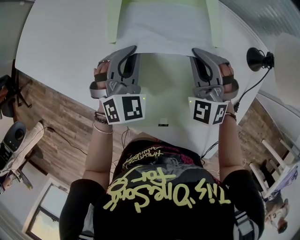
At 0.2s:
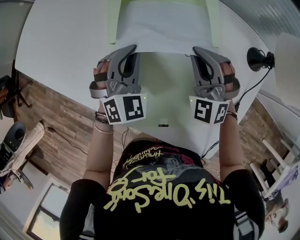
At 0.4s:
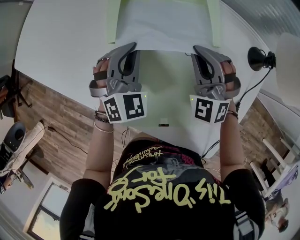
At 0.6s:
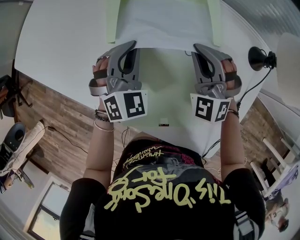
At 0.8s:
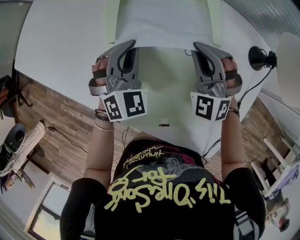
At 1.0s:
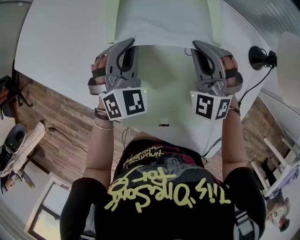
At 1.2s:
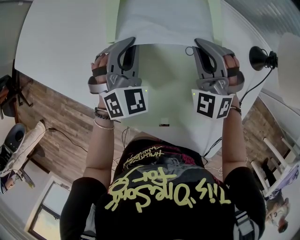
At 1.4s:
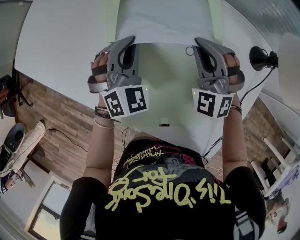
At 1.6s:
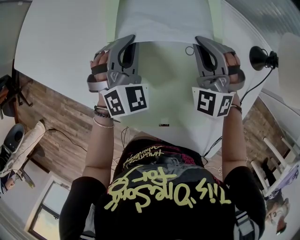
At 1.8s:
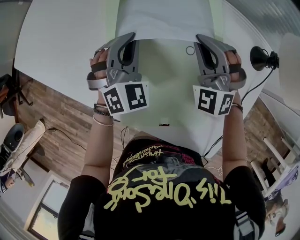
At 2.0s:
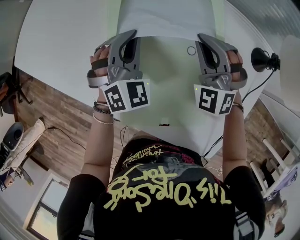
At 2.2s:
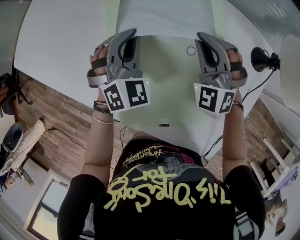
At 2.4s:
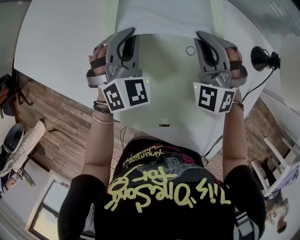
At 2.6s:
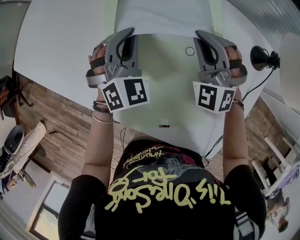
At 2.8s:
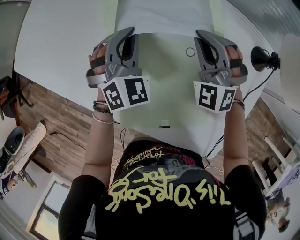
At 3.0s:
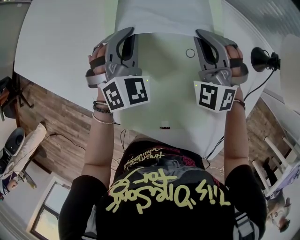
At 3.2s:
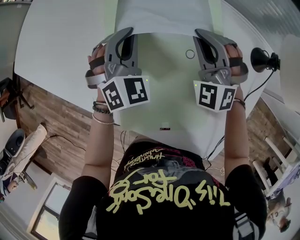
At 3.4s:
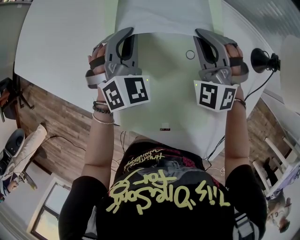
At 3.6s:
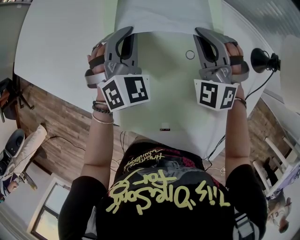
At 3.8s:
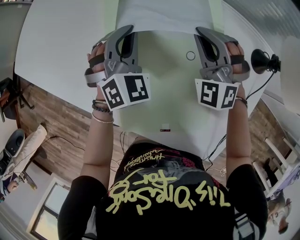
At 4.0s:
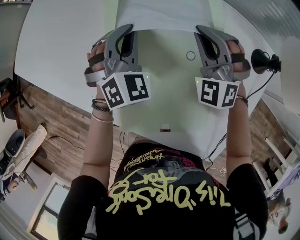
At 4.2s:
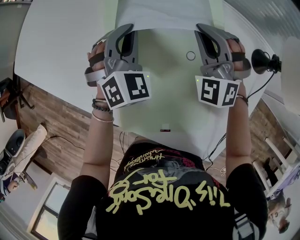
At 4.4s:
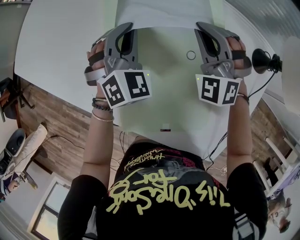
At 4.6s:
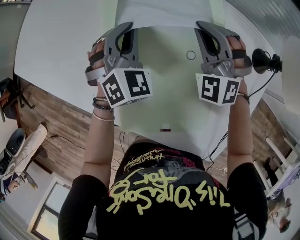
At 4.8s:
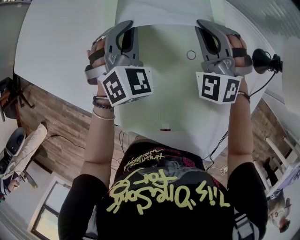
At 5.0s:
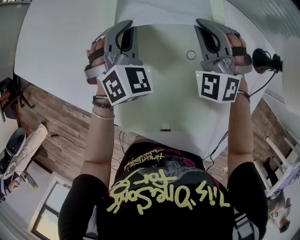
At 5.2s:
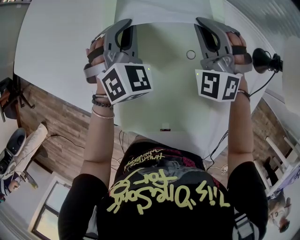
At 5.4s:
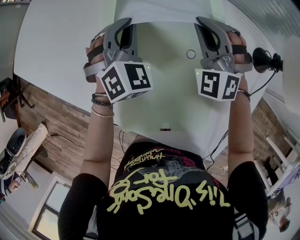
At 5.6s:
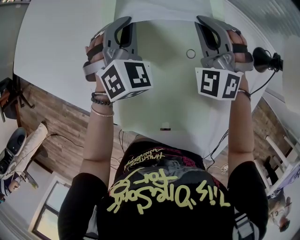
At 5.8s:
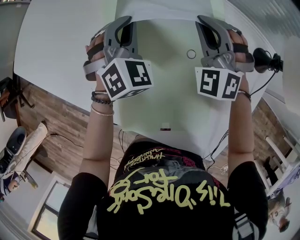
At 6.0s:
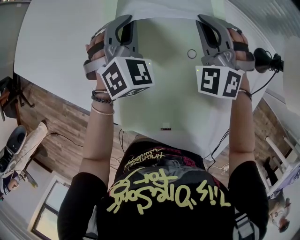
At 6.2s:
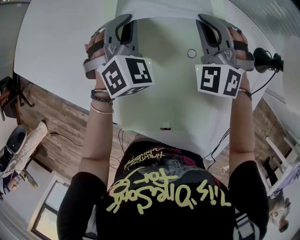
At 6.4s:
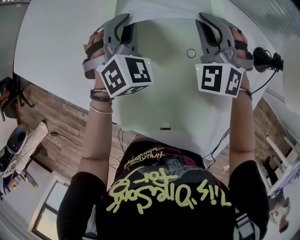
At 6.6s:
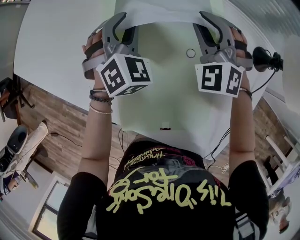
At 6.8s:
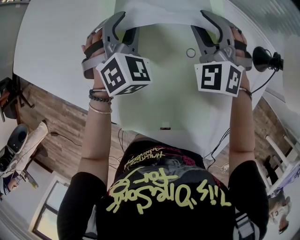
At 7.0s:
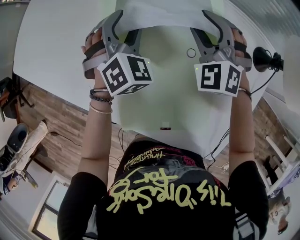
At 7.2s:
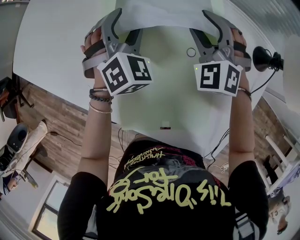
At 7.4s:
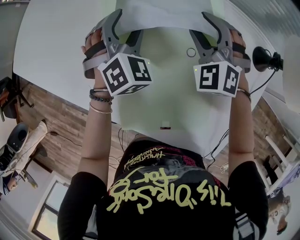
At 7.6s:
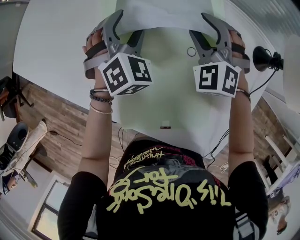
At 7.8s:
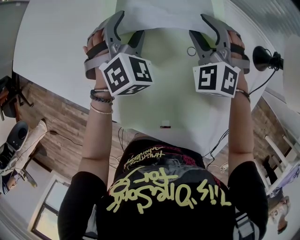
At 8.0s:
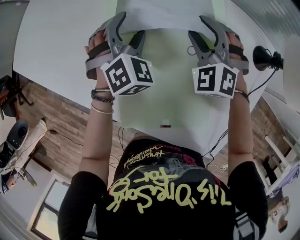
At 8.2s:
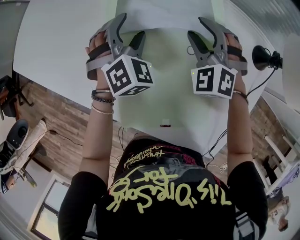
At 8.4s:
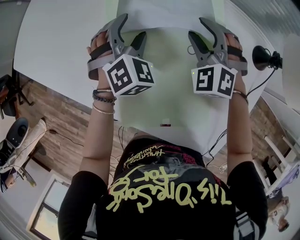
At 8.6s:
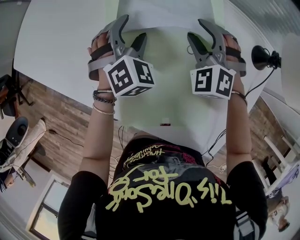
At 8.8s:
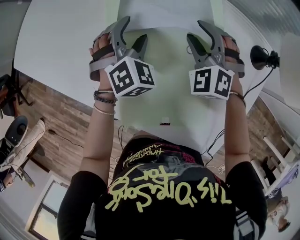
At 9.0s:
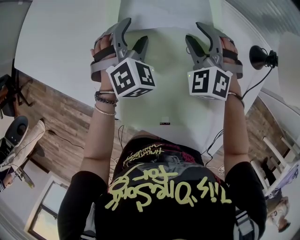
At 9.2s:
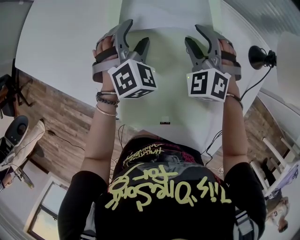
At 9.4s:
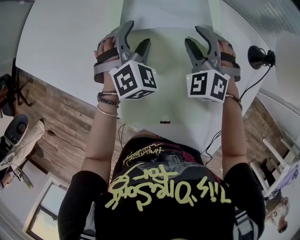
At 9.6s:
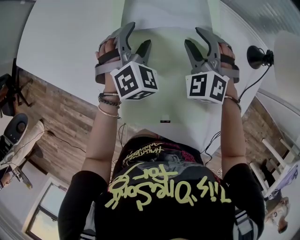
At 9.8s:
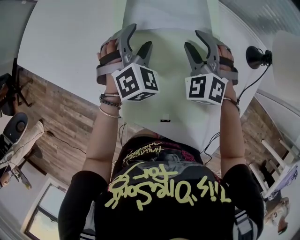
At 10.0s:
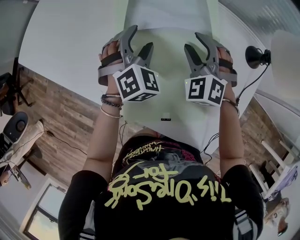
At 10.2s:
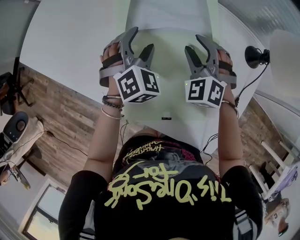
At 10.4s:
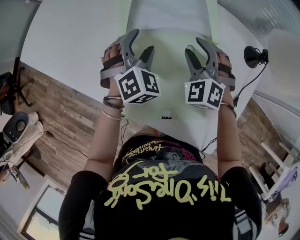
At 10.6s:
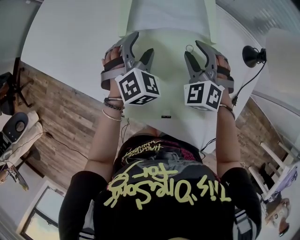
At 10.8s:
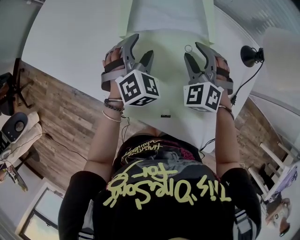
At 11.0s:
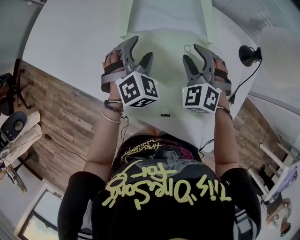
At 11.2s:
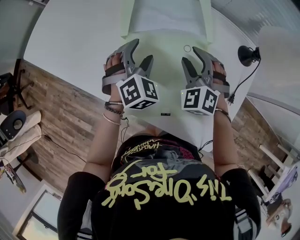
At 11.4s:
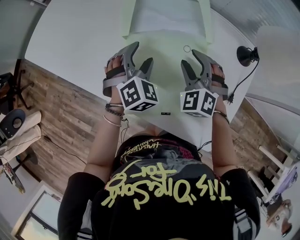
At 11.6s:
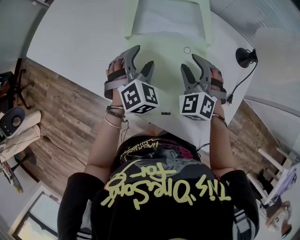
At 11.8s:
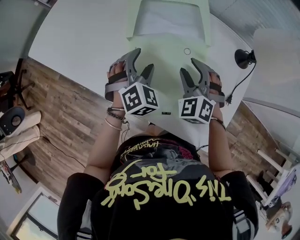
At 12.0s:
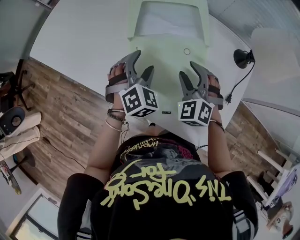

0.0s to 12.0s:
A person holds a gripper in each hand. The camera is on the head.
0.0s to 3.0s: The grippers move only a little.
3.0s to 6.0s: The grippers make only small movements.
6.0s to 7.6s: The left gripper opens its fingers, while the right gripper opens up.
7.6s to 9.0s: The grippers stay close to where they were, moving slightly.
9.0s to 10.4s: The grippers stay close to where they were, moving slightly.
10.4s to 12.0s: Both grippers travel together backward, approximately 5 cm.

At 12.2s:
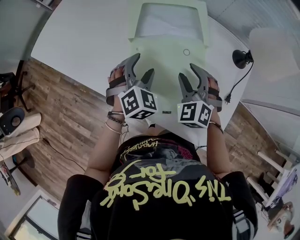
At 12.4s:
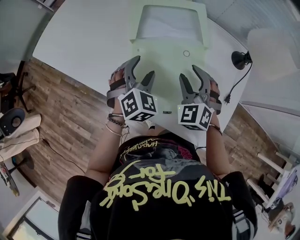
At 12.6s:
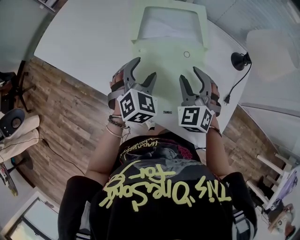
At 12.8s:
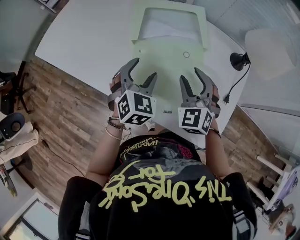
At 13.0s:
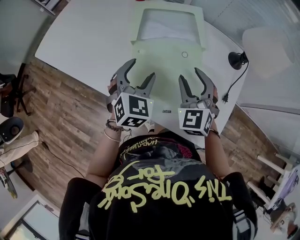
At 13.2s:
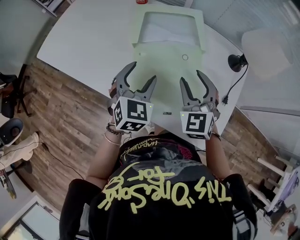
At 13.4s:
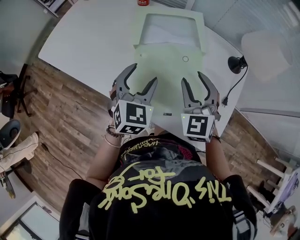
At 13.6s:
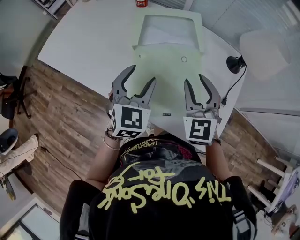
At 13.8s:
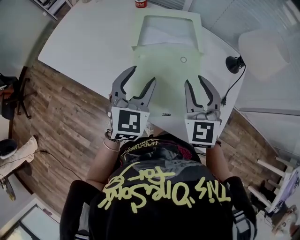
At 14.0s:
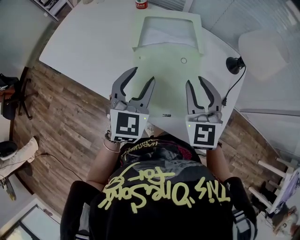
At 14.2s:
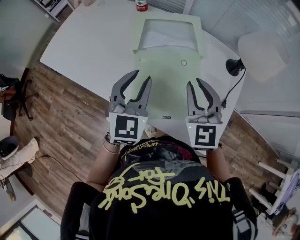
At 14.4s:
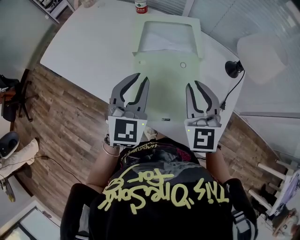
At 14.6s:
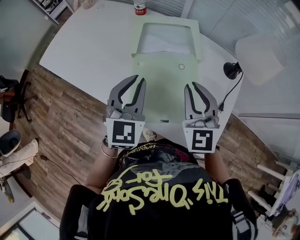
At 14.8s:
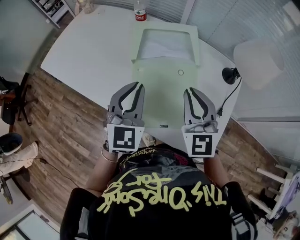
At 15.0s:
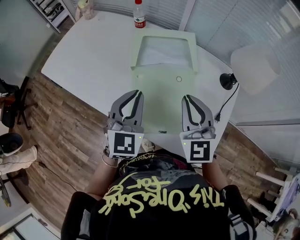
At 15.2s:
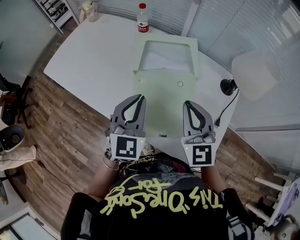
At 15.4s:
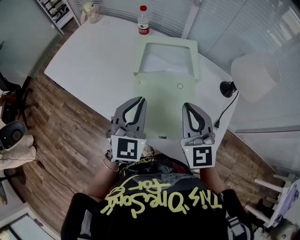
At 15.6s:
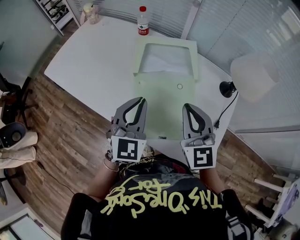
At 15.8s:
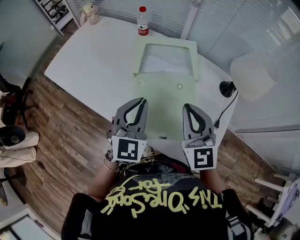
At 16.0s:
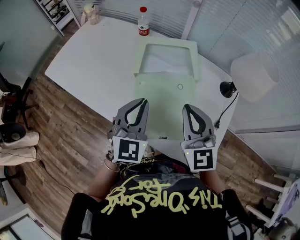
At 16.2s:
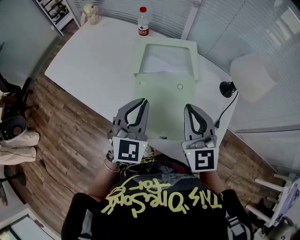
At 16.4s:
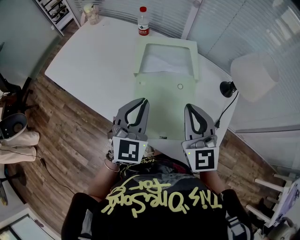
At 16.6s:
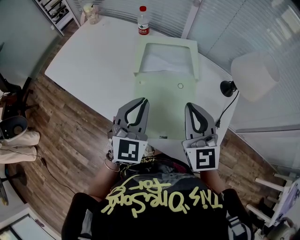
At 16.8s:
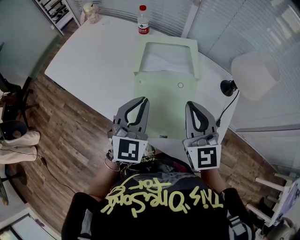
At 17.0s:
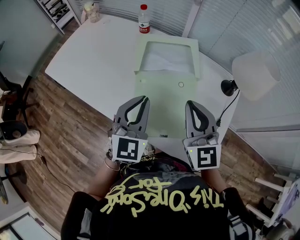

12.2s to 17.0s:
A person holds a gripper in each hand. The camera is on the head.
12.2s to 13.8s: Both grippers move upward, some 10 cm. The right gripper swivels approximately 30 degrees. The left gripper changes its angle by some 30 degrees.
13.8s to 15.4s: The left gripper closes; the right gripper shifts roughly 5 cm upward, and closes up.
15.4s to 17.0s: There are only small adjustments of the grippers.

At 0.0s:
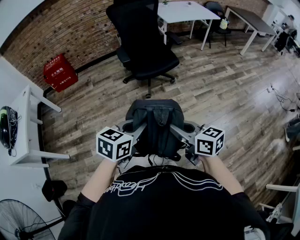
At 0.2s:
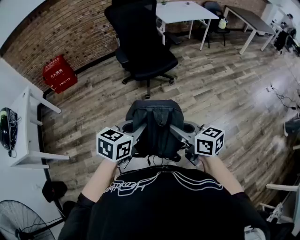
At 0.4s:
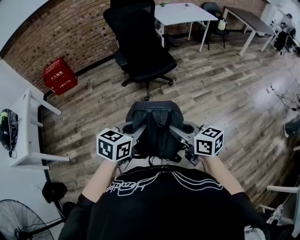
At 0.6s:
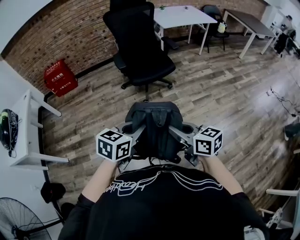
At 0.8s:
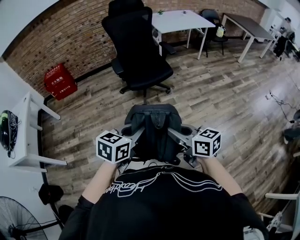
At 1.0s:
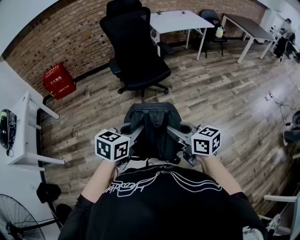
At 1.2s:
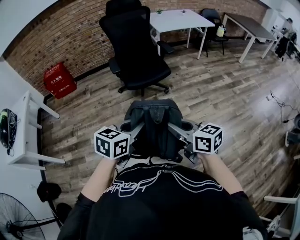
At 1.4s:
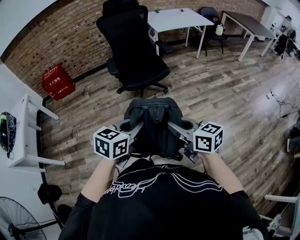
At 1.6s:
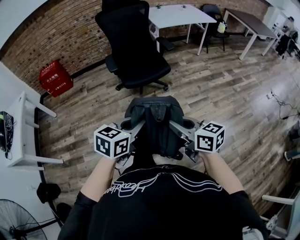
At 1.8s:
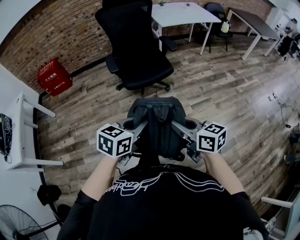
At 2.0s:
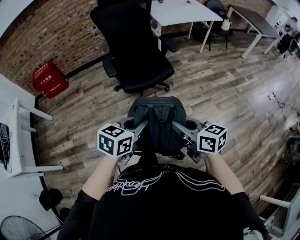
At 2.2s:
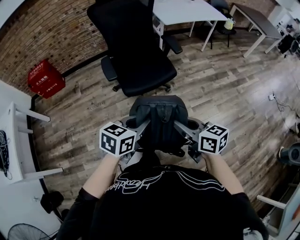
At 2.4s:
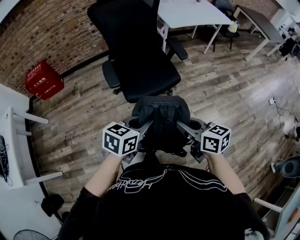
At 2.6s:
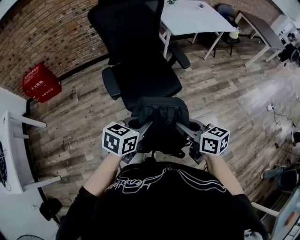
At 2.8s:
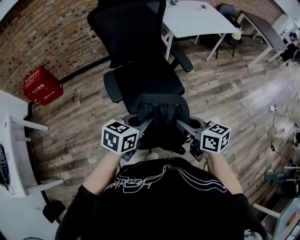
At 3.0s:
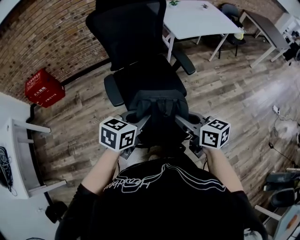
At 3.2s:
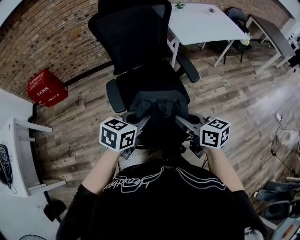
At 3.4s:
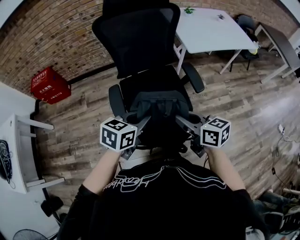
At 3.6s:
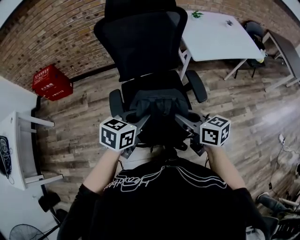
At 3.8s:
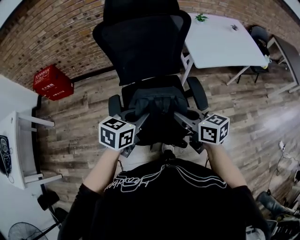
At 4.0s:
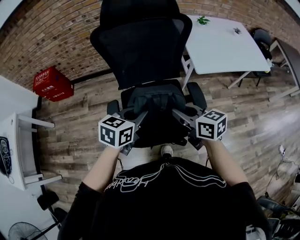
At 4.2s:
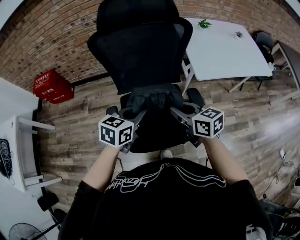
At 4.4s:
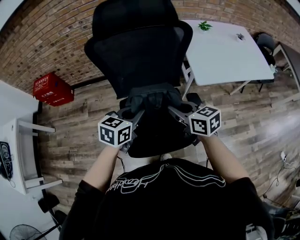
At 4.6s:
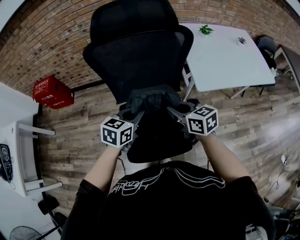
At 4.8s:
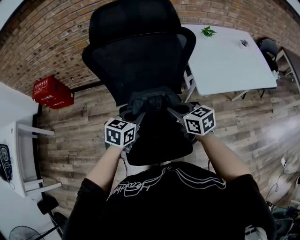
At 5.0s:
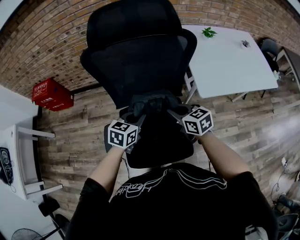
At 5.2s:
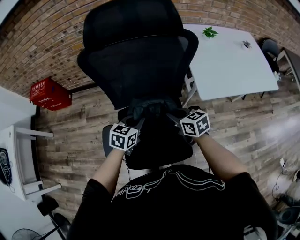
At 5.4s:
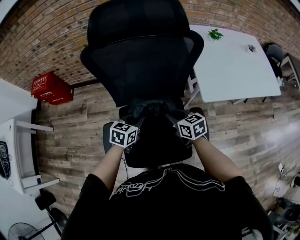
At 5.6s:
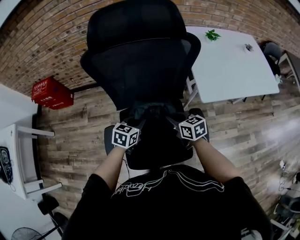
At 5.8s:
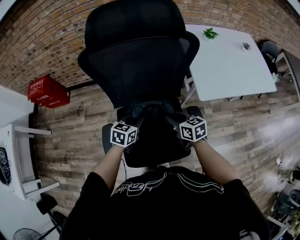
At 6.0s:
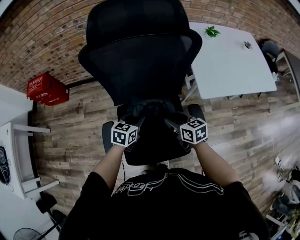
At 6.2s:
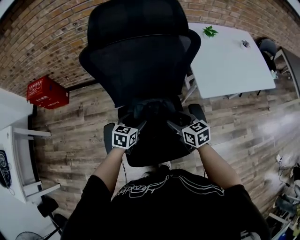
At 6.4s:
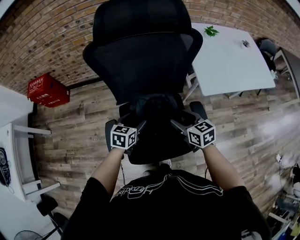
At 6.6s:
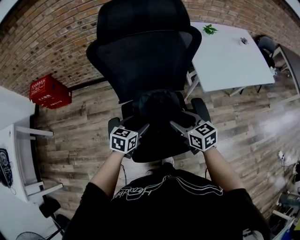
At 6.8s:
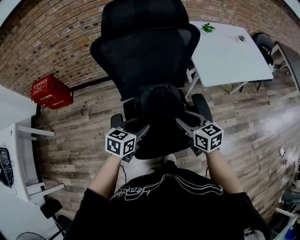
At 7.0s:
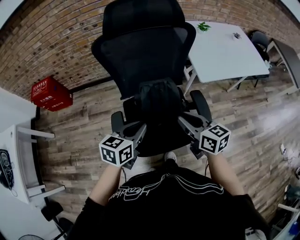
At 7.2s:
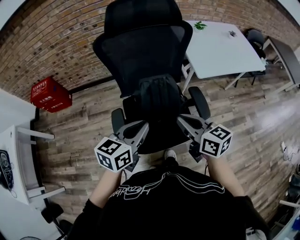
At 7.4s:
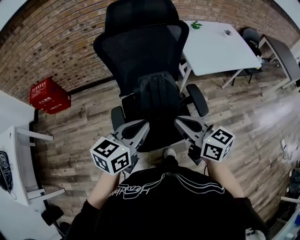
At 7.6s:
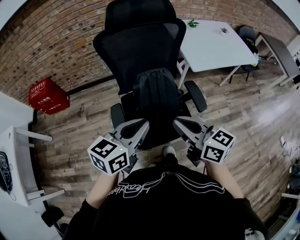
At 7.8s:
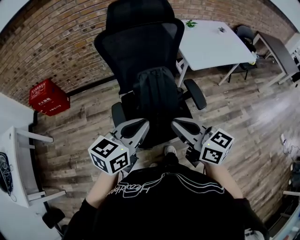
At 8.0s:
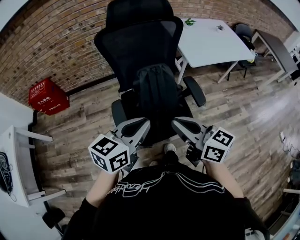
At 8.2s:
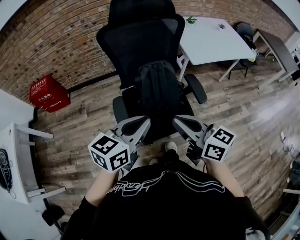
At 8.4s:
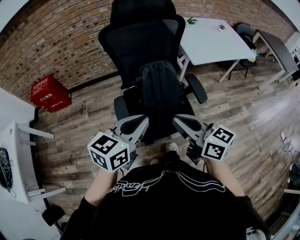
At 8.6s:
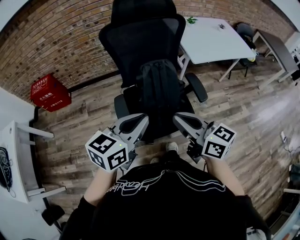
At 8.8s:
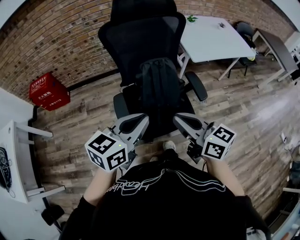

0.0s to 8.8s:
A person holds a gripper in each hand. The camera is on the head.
0.0s to 1.4s: The grippers both shift to the right by about 10 cm.
1.4s to 3.0s: The pair of grippers is taken forward, roughly 40 cm.
3.0s to 4.4s: The grippers both shift forward by roughly 35 cm.
4.4s to 5.8s: Both grippers move downward and forward, roughly 15 cm.
5.8s to 7.4s: The left gripper goes about 30 cm upward and backward, turns by some 20 degrees, and opens and closes again, while the right gripper is displaced backward and upward by about 30 cm, turns by some 20 degrees, and closes up.
7.4s to 8.8s: The grippers both shift backward by approximately 10 cm.
